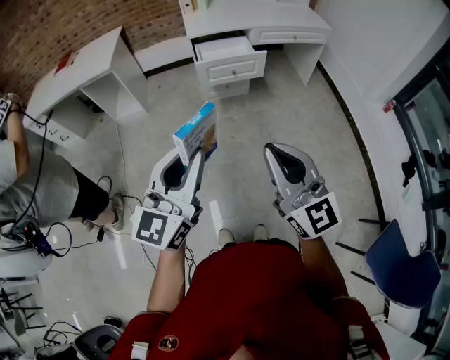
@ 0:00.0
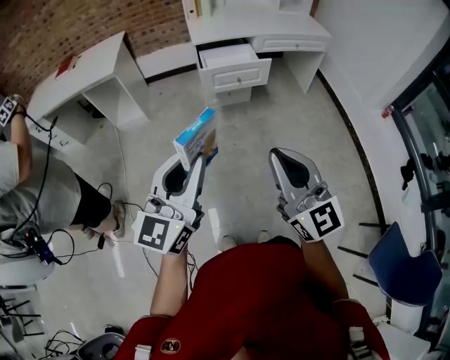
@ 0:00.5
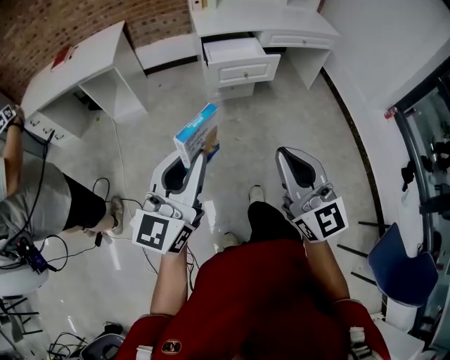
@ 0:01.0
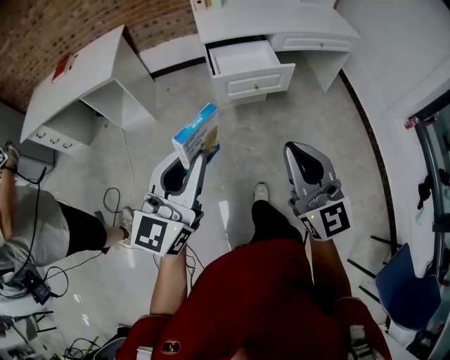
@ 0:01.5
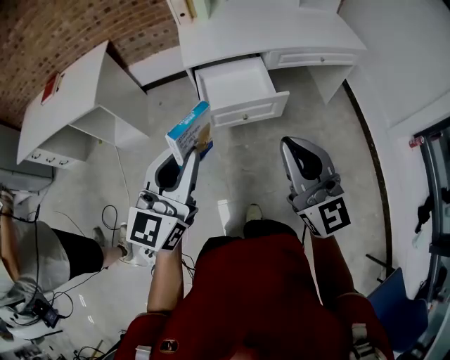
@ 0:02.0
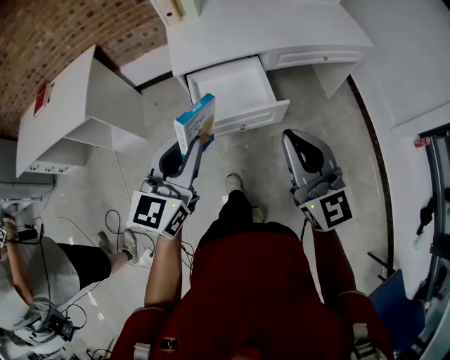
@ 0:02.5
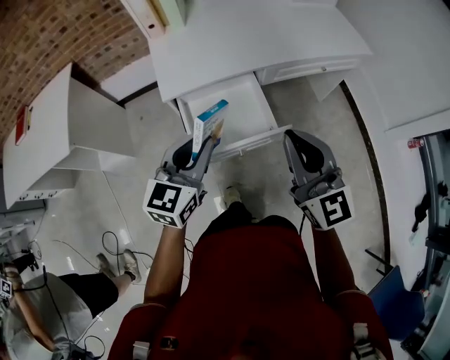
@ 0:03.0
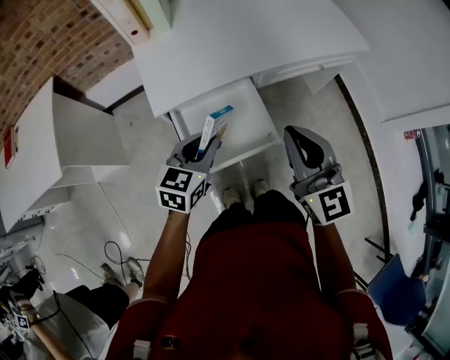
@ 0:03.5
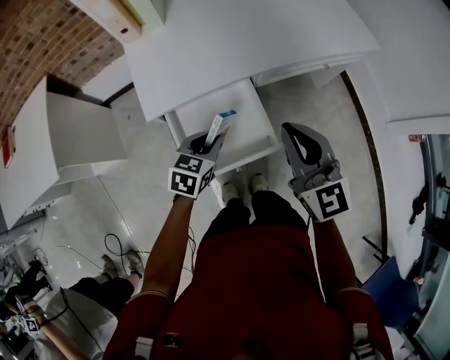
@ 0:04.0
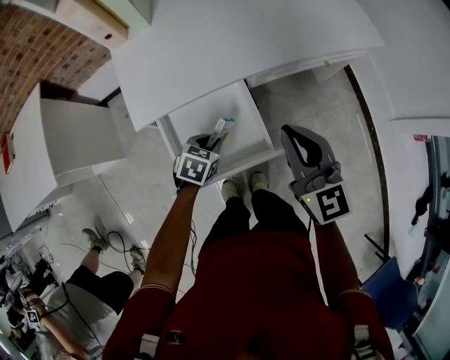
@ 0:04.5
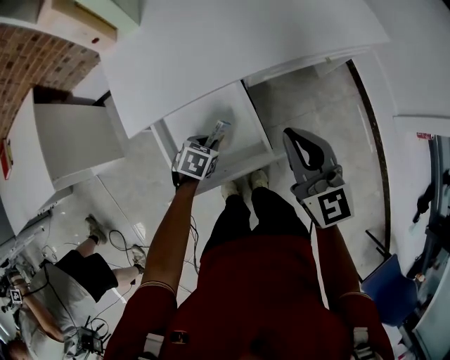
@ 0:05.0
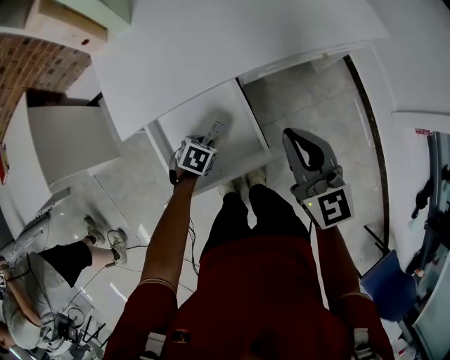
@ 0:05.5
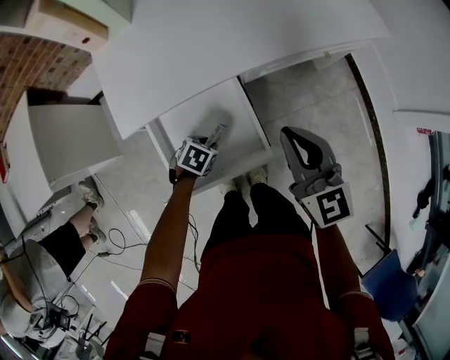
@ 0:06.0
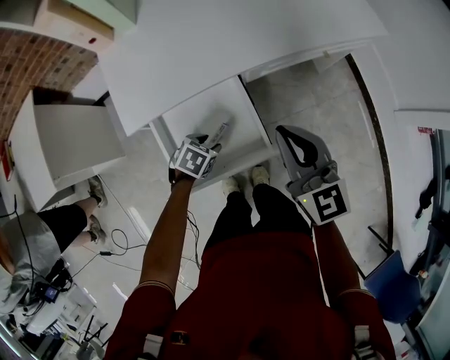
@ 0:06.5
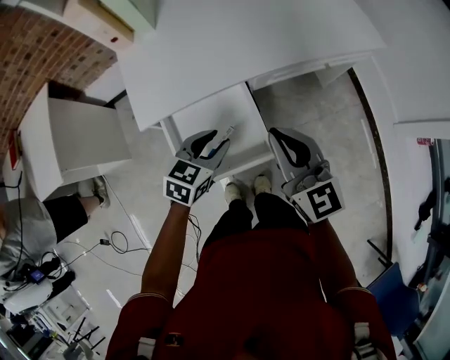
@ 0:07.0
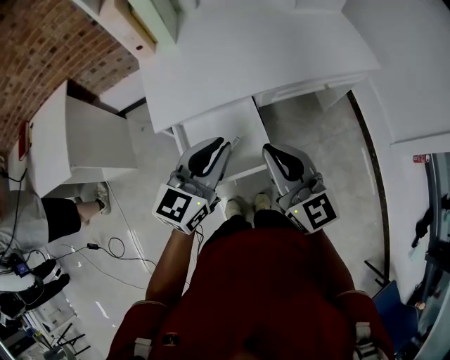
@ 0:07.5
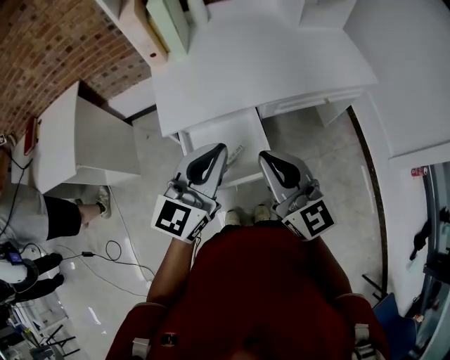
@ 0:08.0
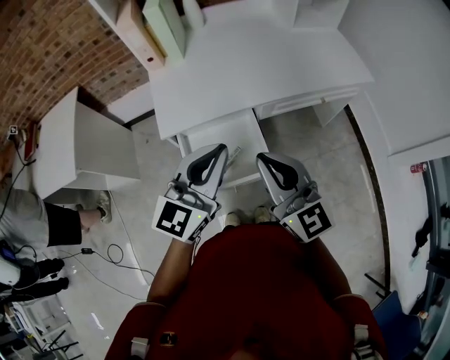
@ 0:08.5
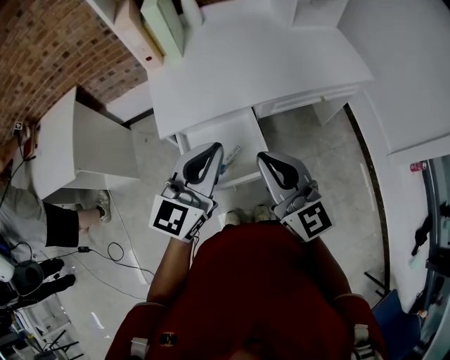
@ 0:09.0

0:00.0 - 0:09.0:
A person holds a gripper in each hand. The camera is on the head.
0:00.0 - 0:02.0: The pair of grippers is taken forward, roughly 40 cm.
0:02.0 - 0:04.5: The left gripper shifts about 60 cm forward and downward, and points its fingers about 60 degrees further downward. Meanwhile the right gripper travels forward by about 40 cm.
0:04.5 - 0:07.0: The left gripper is displaced upward by approximately 10 cm, and turns by about 20 degrees.
0:07.0 - 0:09.0: The left gripper goes approximately 25 cm upward, tilts its fingers approximately 30 degrees upward, and closes up. The right gripper goes approximately 10 cm upward and backward.

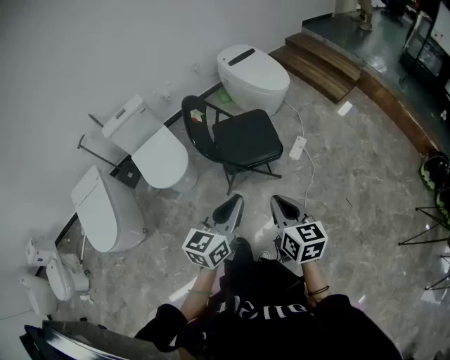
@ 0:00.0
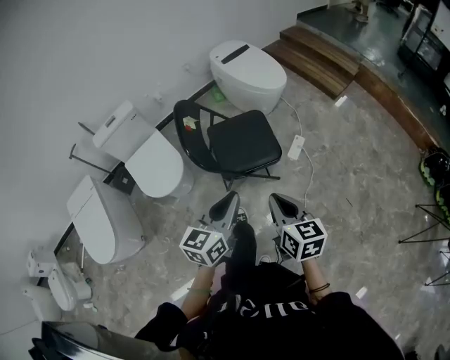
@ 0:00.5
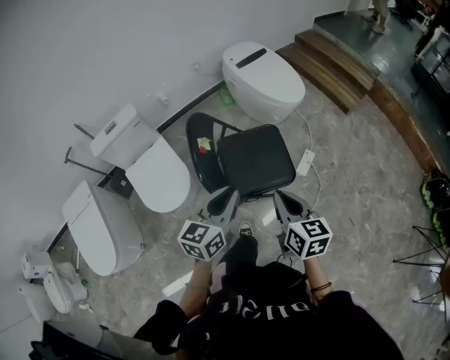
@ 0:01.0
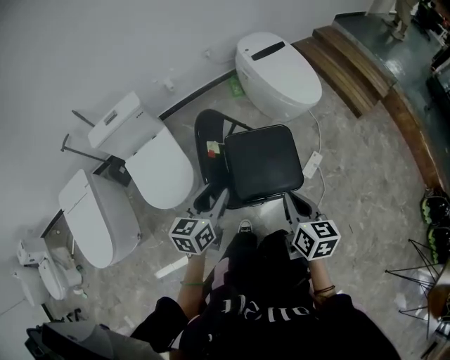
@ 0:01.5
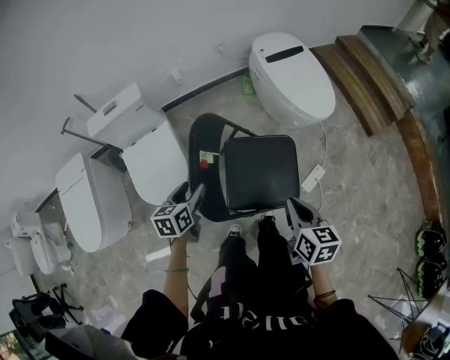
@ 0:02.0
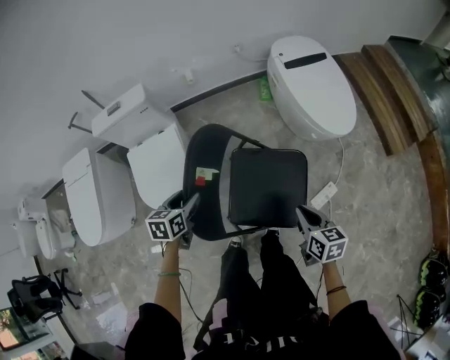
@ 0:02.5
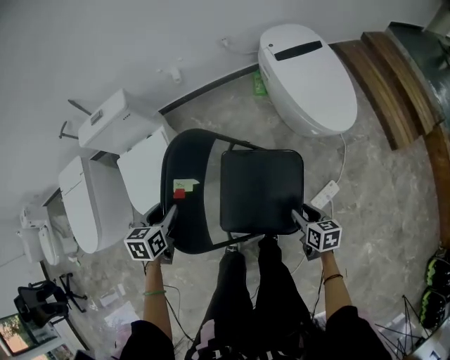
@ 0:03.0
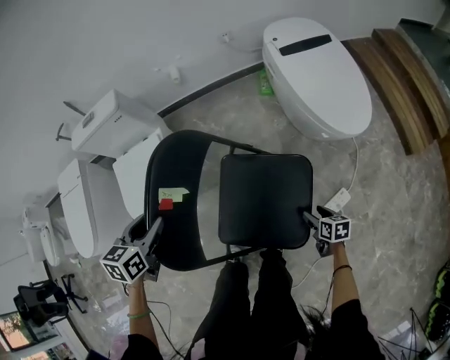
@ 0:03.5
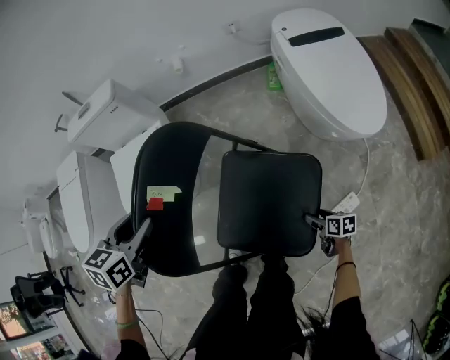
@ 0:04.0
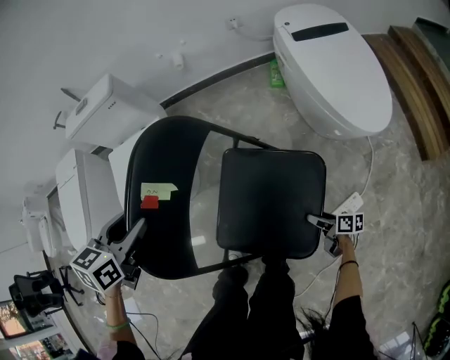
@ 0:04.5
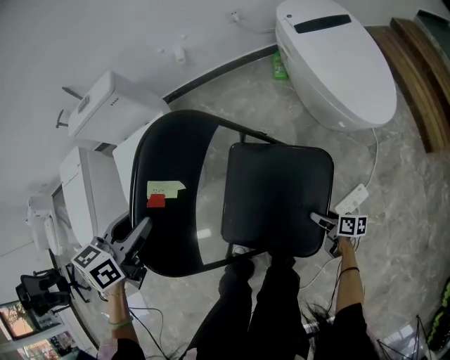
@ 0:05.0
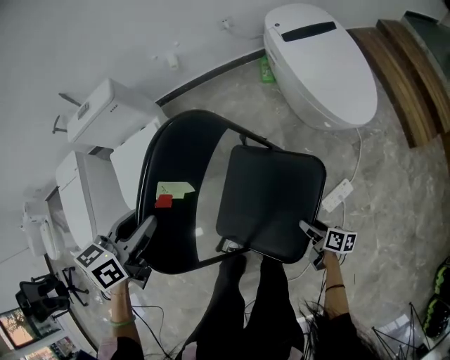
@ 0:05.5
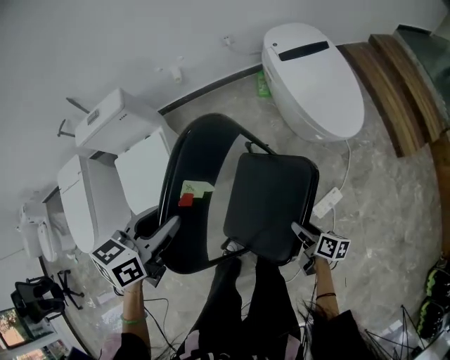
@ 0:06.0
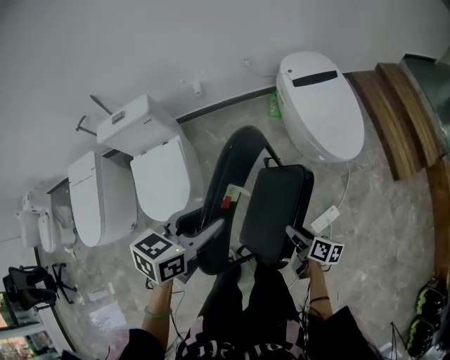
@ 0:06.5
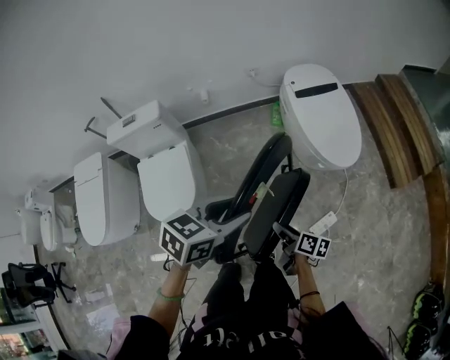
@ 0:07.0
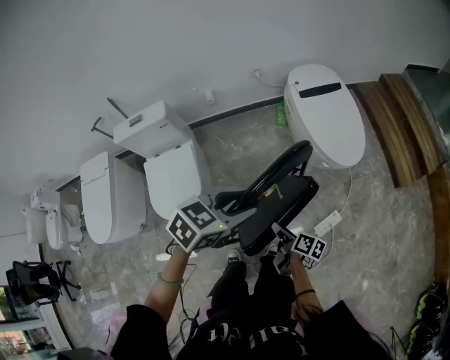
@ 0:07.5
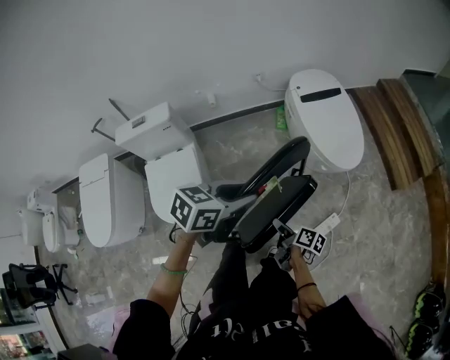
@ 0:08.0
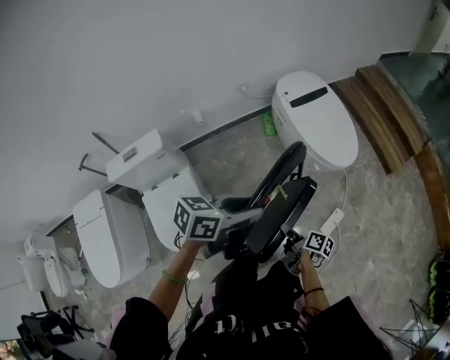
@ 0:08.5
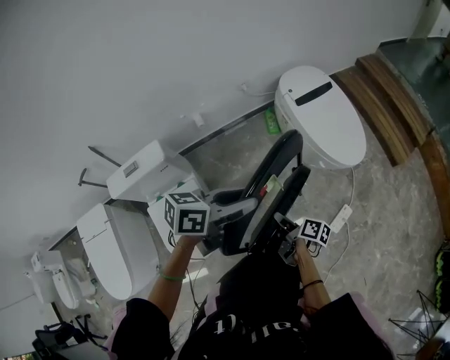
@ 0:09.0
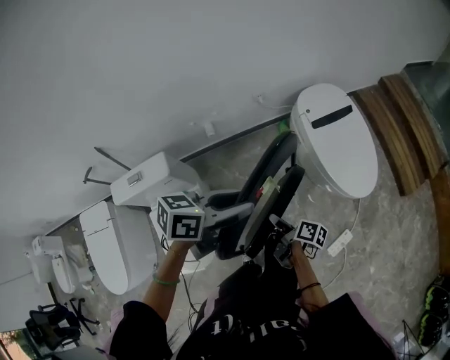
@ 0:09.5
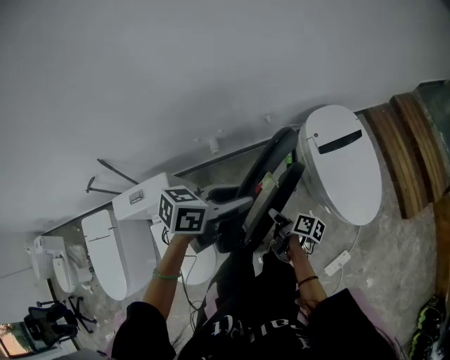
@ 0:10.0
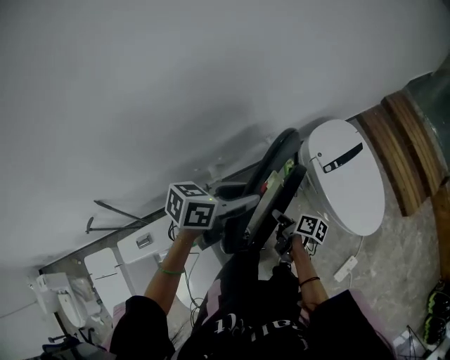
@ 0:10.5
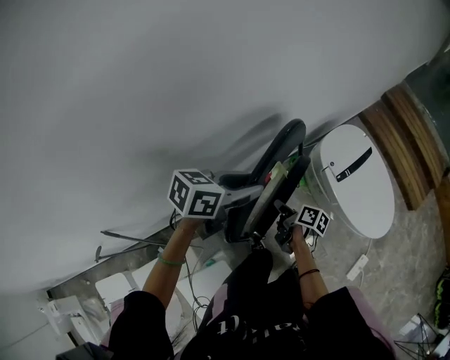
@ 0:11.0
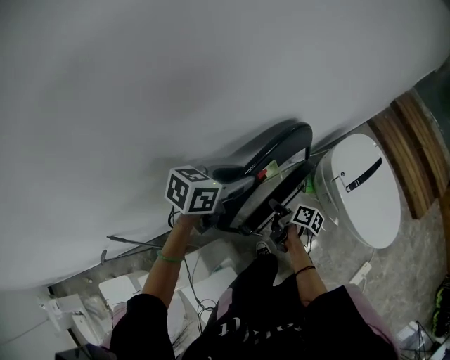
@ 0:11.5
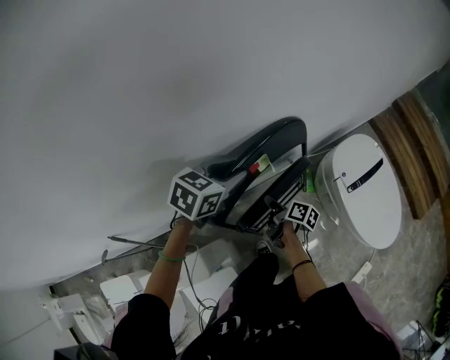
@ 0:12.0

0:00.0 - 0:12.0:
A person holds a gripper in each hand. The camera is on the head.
0:00.0 - 0:02.0: The pair of grippers is taken forward, about 40 cm. The left gripper is displaced downward by about 20 cm, changes its angle by about 40 degrees, and opens up.
0:02.0 - 0:04.0: The left gripper moves downward, roughly 10 cm. The right gripper heads downward, covering about 50 cm, changes its angle by about 40 degrees, and opens its fingers.
0:04.0 - 0:06.0: The right gripper travels upward by some 25 cm, and turns by about 30 degrees. The left gripper moves upward and to the right, roughly 15 cm, and rotates about 20 degrees.
0:06.0 - 0:08.0: The left gripper moves upward and to the right, approximately 10 cm, and swivels about 20 degrees, while the right gripper shifts about 20 cm to the left and upward.
0:08.0 - 0:10.0: Both grippers travel together forward and to the left, some 40 cm.
0:10.0 - 0:12.0: The two grippers go some 40 cm forward and to the left. The left gripper turns by approximately 30 degrees.

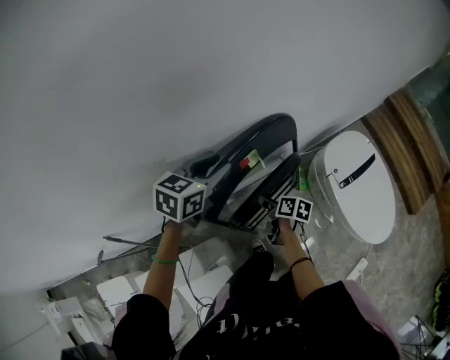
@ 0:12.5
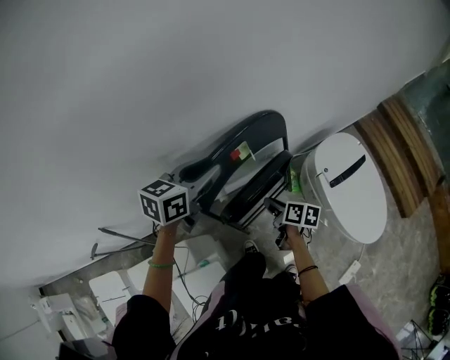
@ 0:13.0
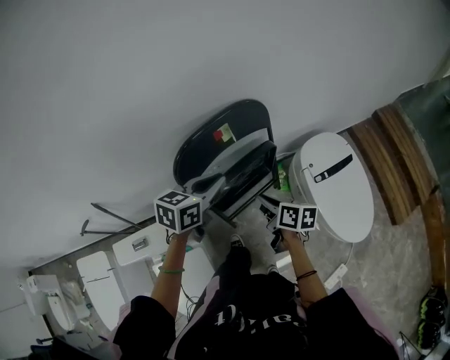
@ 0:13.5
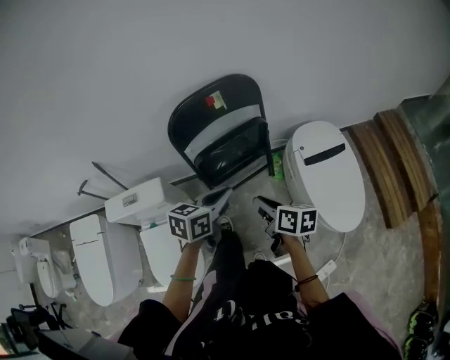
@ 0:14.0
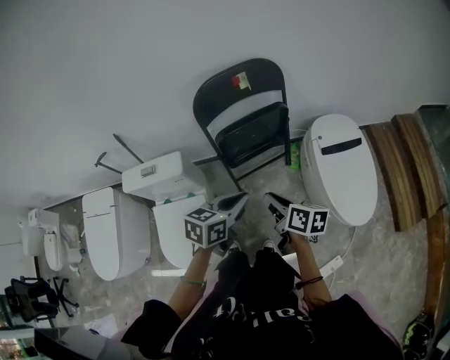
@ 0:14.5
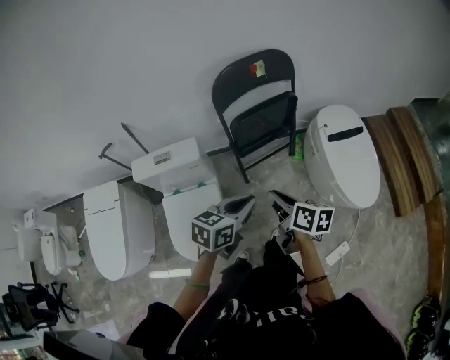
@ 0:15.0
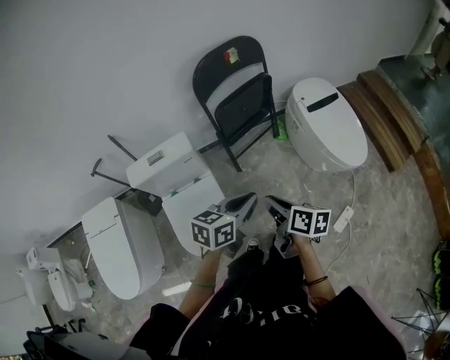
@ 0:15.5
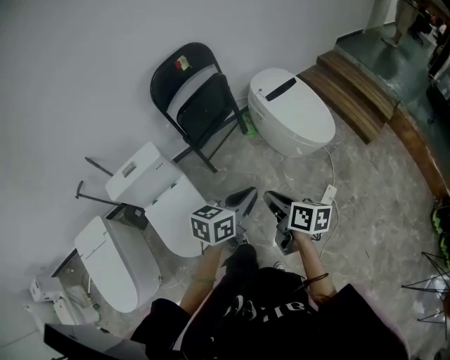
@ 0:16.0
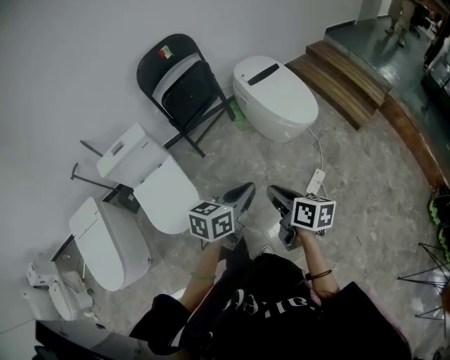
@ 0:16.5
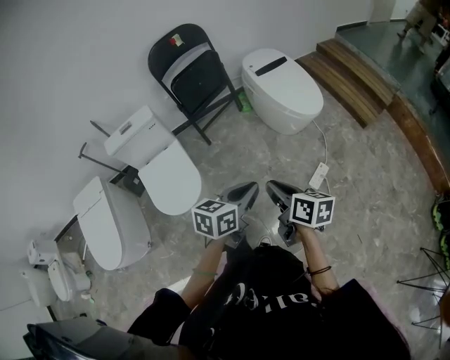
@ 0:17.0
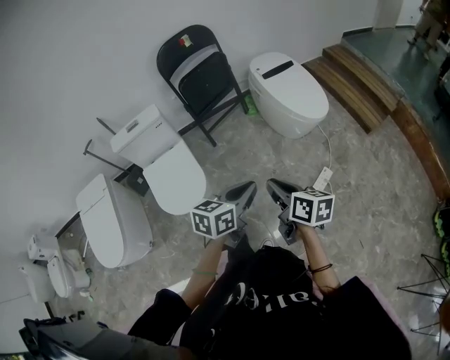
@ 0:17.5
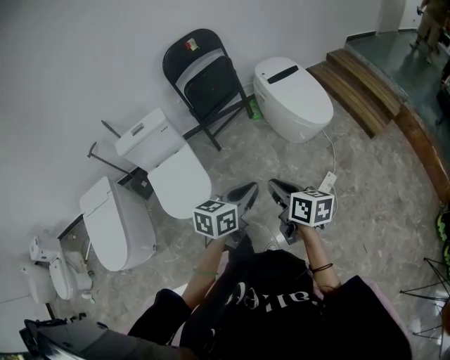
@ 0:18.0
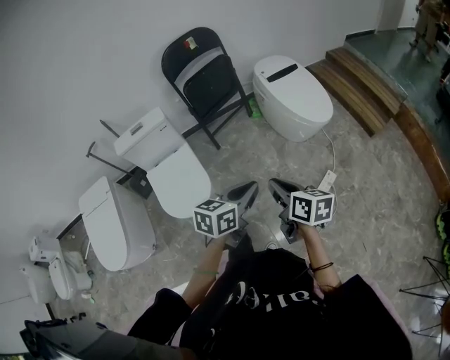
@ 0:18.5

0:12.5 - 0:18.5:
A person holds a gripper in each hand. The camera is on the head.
0:12.5 - 0:14.5: The right gripper is displaced backward and upward by approximately 40 cm, and rotates approximately 30 degrees; the left gripper travels backward by approximately 50 cm, rotates approximately 20 degrees, and closes up.
0:14.5 - 0:16.5: Both grippers are carried some 50 cm. The right gripper rotates roughly 20 degrees; the left gripper turns by some 20 degrees.
0:16.5 - 0:18.5: The left gripper travels backward by about 5 cm, while the right gripper changes place by some 5 cm.
